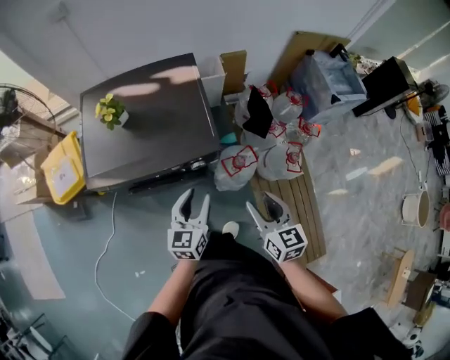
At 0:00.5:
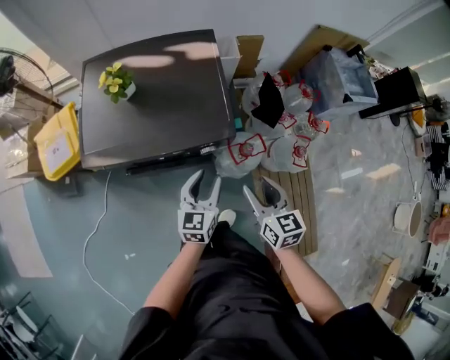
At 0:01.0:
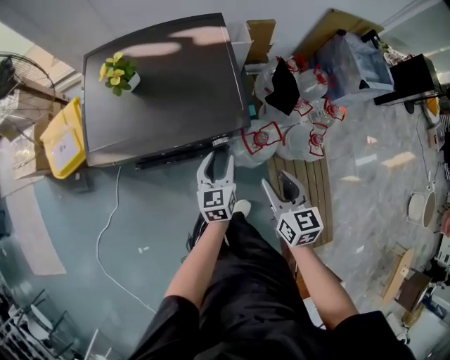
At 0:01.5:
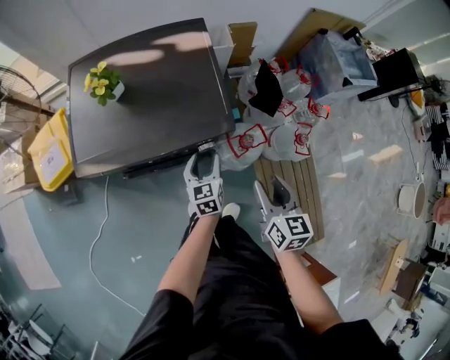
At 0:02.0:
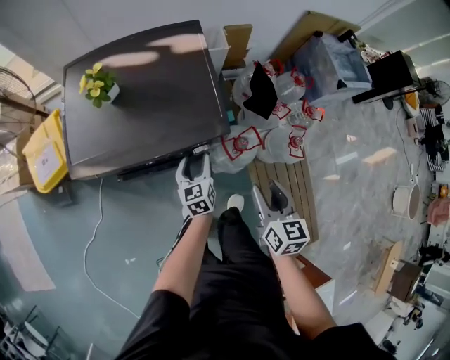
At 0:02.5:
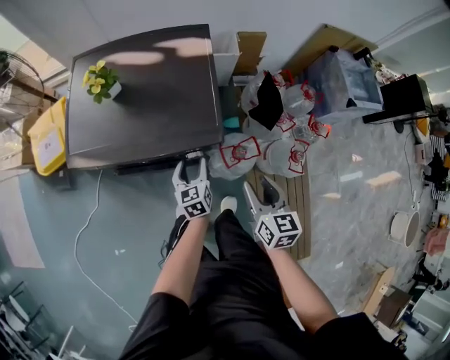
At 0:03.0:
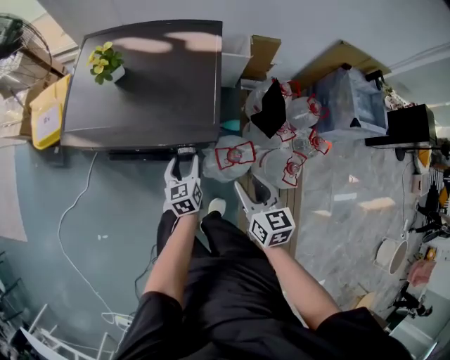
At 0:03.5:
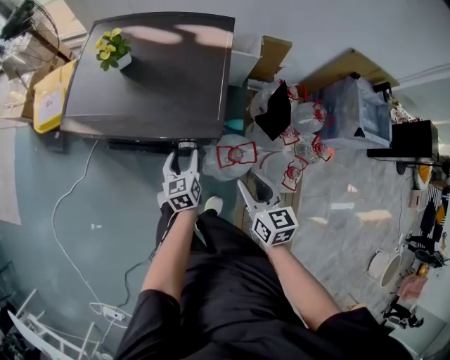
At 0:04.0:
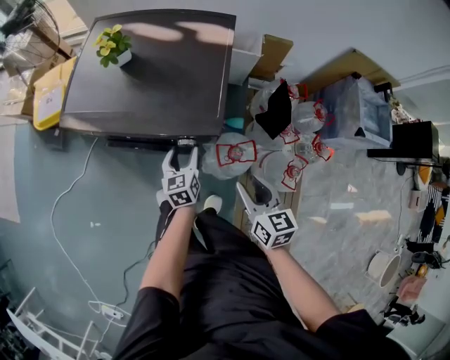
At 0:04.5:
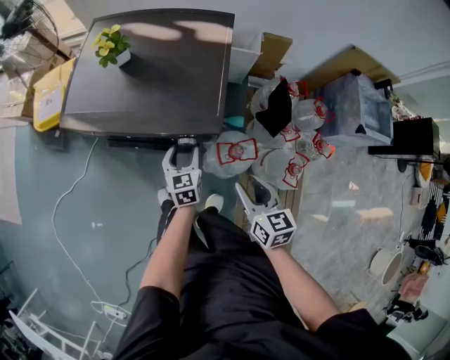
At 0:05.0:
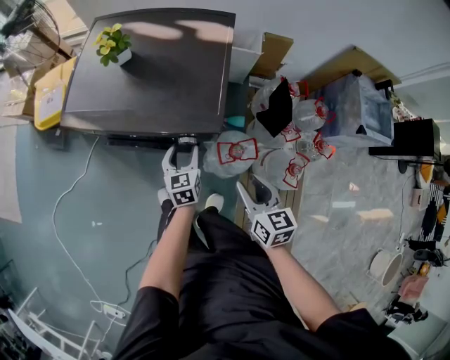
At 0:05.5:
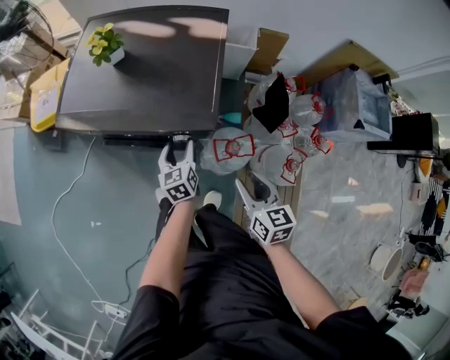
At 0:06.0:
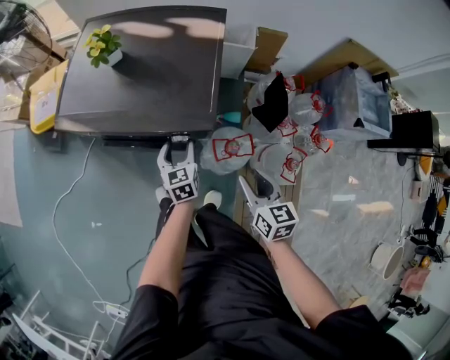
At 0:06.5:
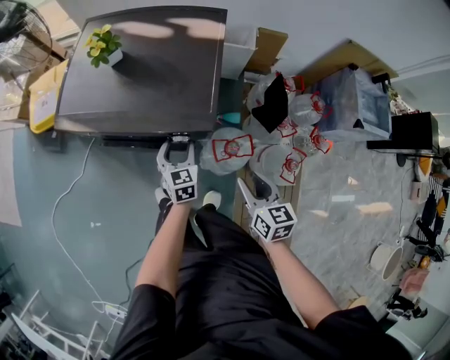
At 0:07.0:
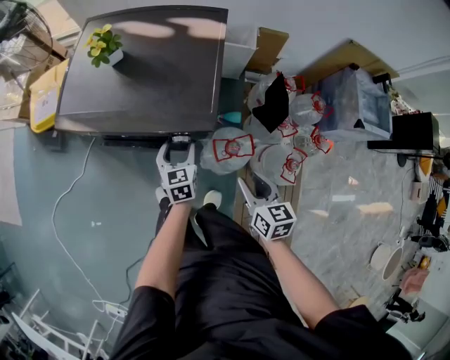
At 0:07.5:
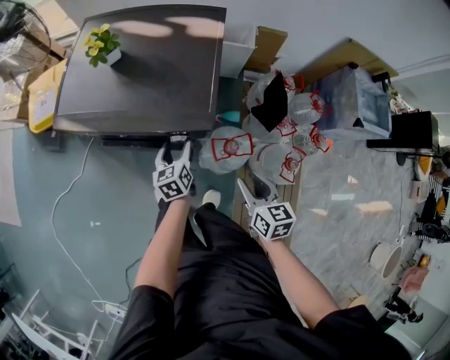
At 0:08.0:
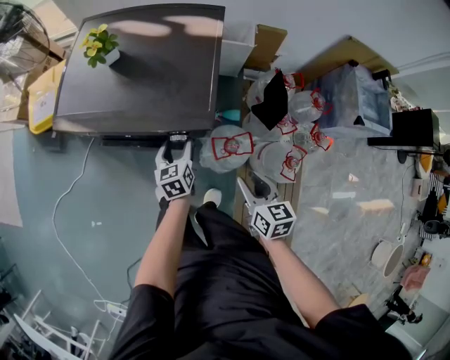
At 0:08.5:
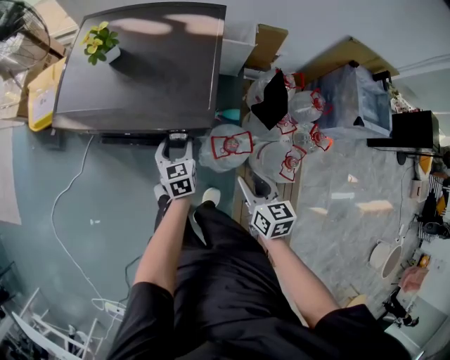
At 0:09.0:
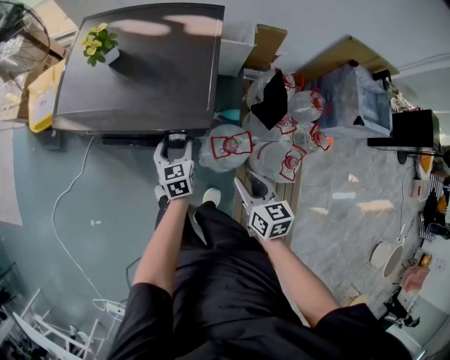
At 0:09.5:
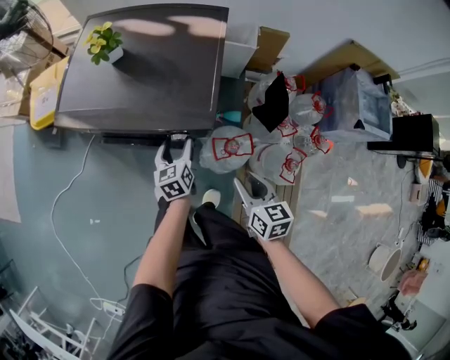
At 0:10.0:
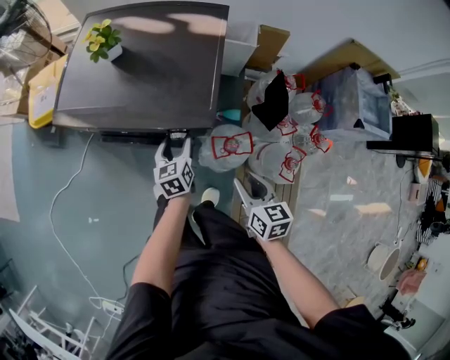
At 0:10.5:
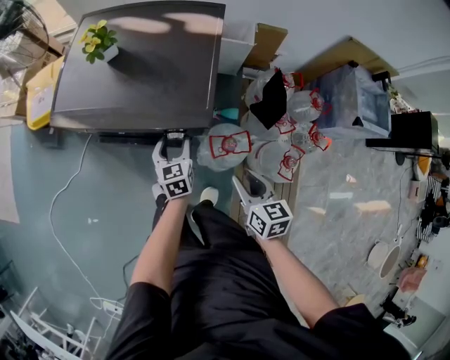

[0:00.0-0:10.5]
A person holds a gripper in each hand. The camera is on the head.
0:00.0 to 0:02.0: The right gripper moves downward, some 5 cm. The left gripper shifts approximately 20 cm downward and forward.
0:02.0 to 0:04.0: The right gripper travels downward by about 5 cm, and turns by some 30 degrees.
0:04.0 to 0:06.5: The left gripper rotates approximately 20 degrees.
0:08.5 to 0:10.5: There are only small adjustments of the grippers.

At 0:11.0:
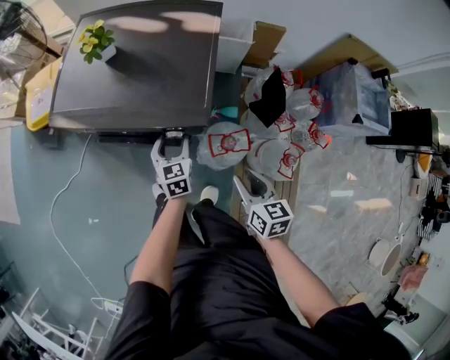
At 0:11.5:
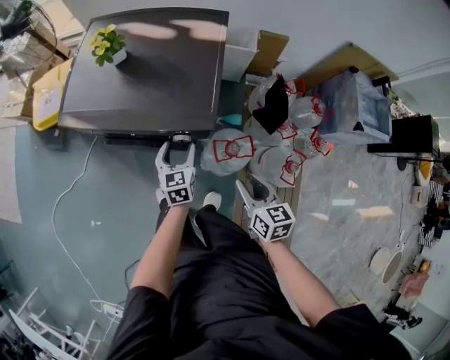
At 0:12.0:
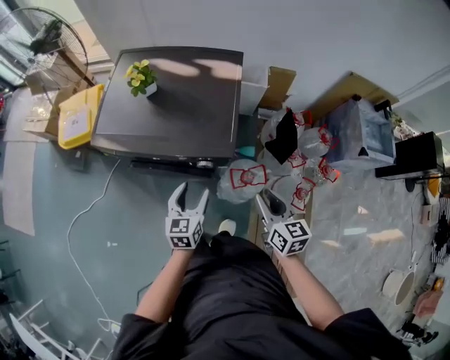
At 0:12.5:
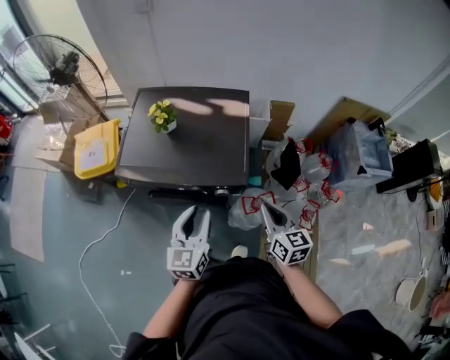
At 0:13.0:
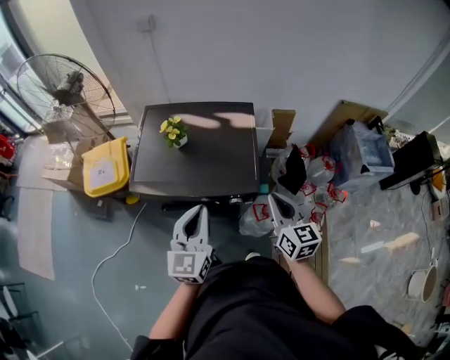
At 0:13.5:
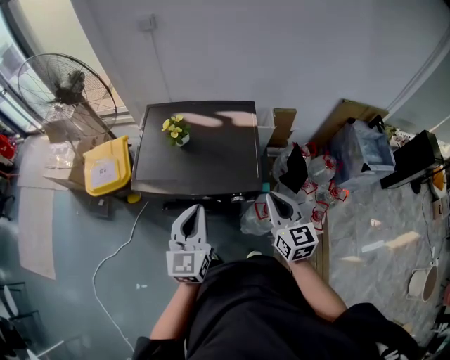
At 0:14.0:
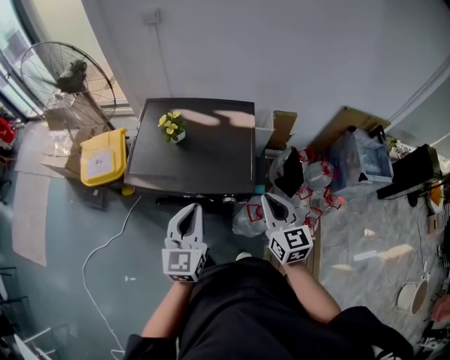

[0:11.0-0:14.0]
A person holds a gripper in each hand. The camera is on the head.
0:11.0 to 0:12.5: The left gripper moves upward, approximately 25 cm, turns by roughly 30 degrees, and closes its fingers, while the right gripper heads upward and to the left, covering approximately 20 cm, and closes its fingers.
0:12.5 to 0:14.0: The grippers both shift upward by about 10 cm. The left gripper closes.

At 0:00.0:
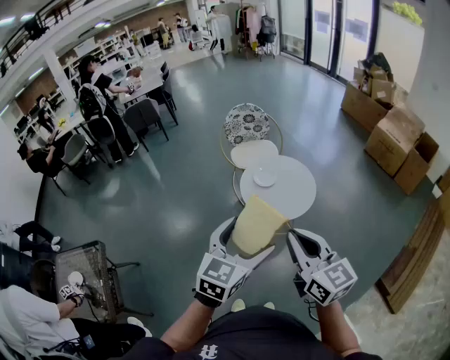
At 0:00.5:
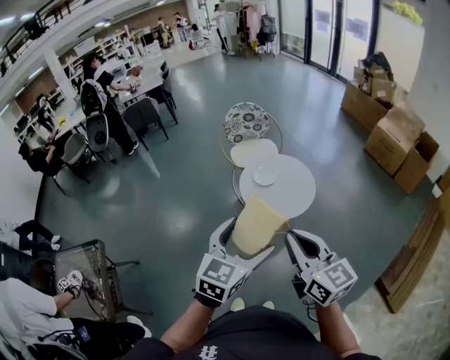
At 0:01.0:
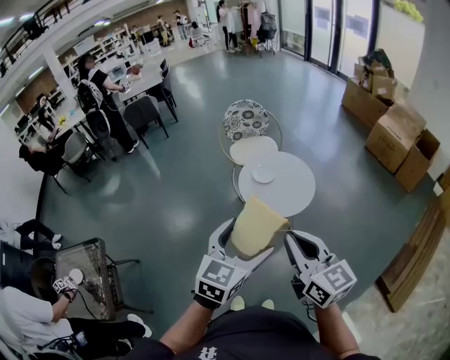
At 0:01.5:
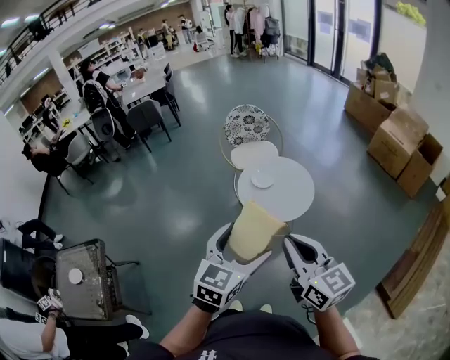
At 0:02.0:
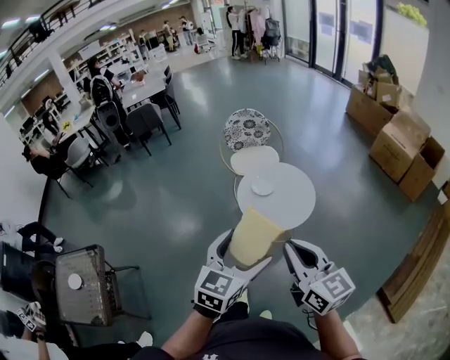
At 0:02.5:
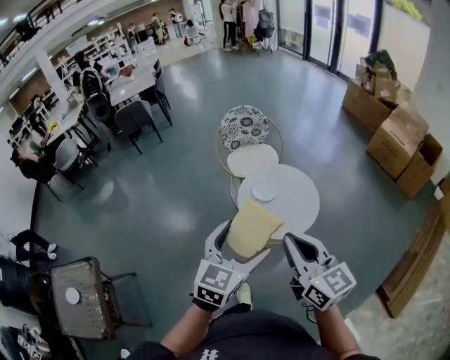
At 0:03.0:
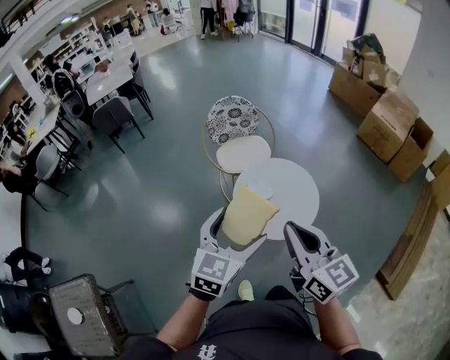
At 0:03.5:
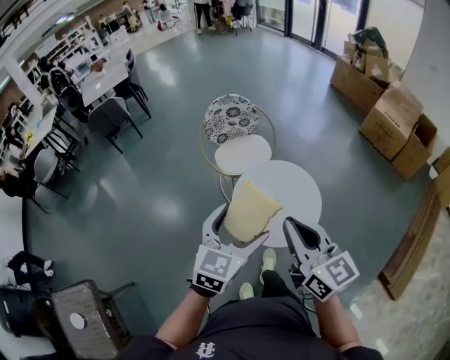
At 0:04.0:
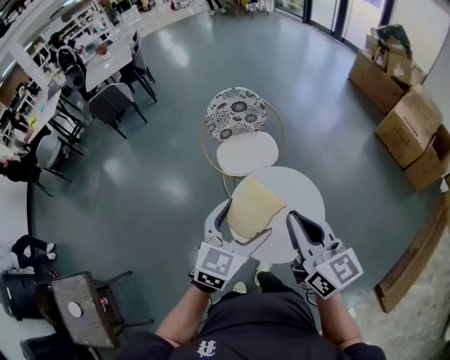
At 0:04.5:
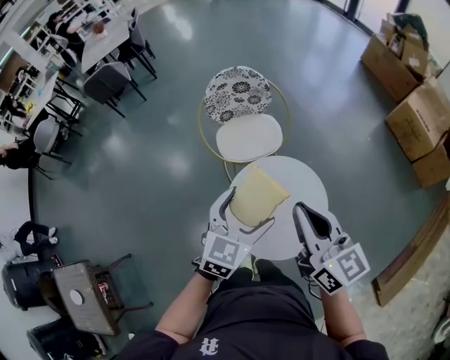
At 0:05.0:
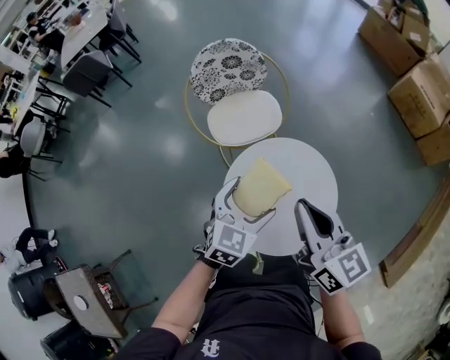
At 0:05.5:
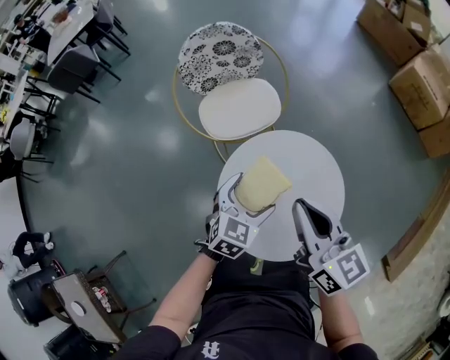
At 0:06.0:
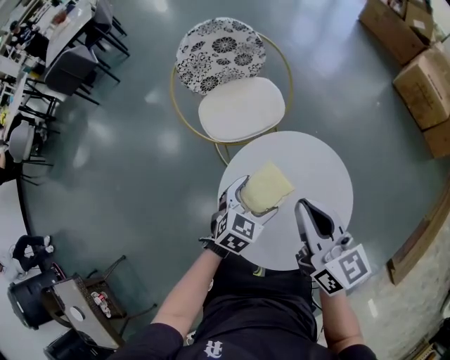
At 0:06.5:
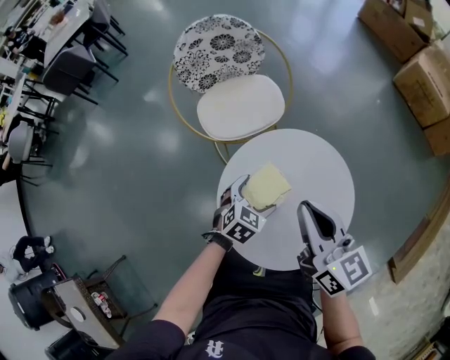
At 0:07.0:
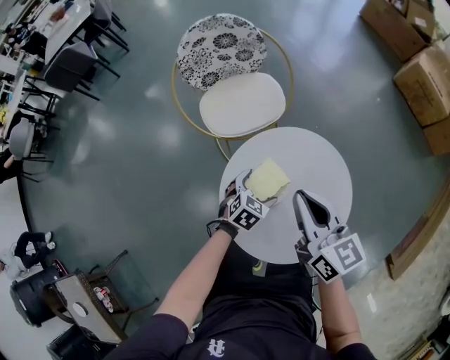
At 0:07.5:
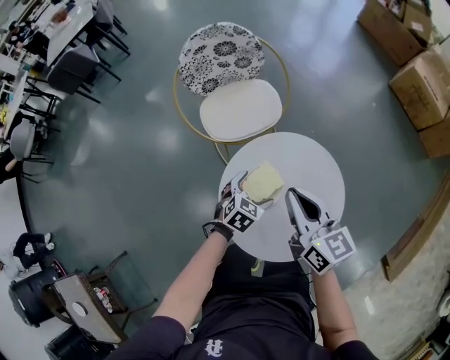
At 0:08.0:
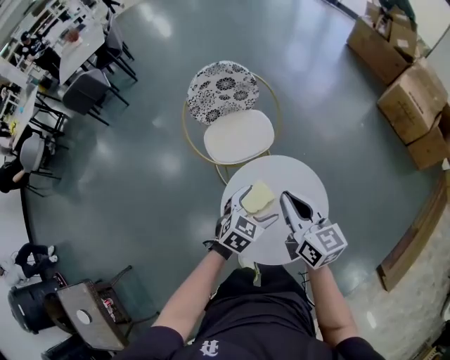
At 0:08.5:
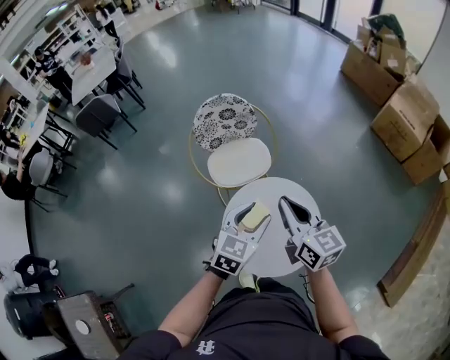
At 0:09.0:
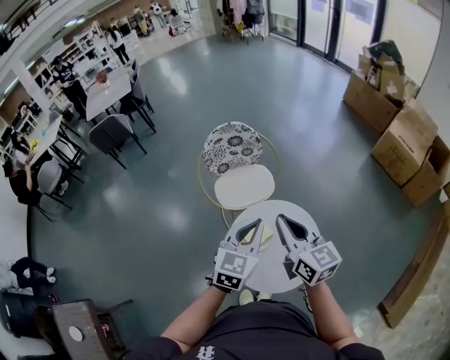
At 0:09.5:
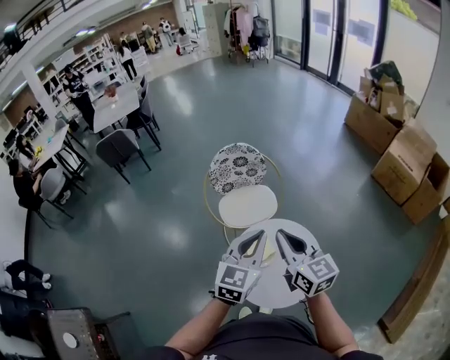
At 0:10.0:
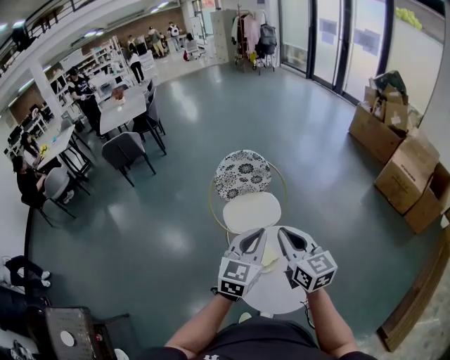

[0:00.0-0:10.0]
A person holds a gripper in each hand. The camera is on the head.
0:00.0 to 0:02.0: There are only small adjustments of the grippers.
0:02.0 to 0:04.0: Both grippers travel together forward, approximately 40 cm.
0:04.0 to 0:06.0: The right gripper goes roughly 30 cm downward and forward; the left gripper moves downward, roughly 35 cm, and swivels roughly 20 degrees.
0:06.0 to 0:08.0: The right gripper travels upward by roughly 10 cm; the left gripper shifts approximately 15 cm upward.
0:08.0 to 0:10.0: The right gripper shifts about 15 cm upward. The left gripper is displaced upward by about 25 cm, rotates roughly 40 degrees, and closes its fingers.

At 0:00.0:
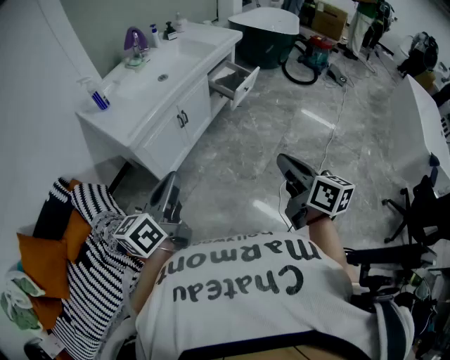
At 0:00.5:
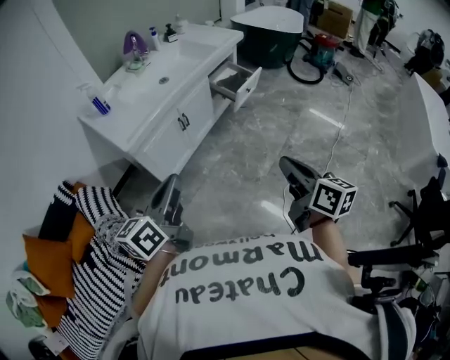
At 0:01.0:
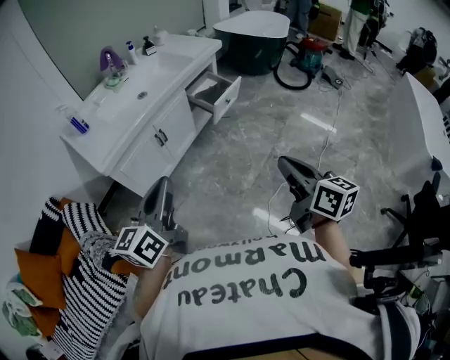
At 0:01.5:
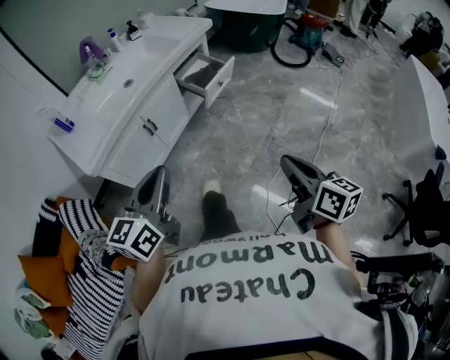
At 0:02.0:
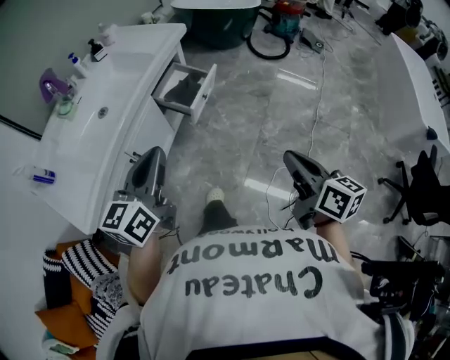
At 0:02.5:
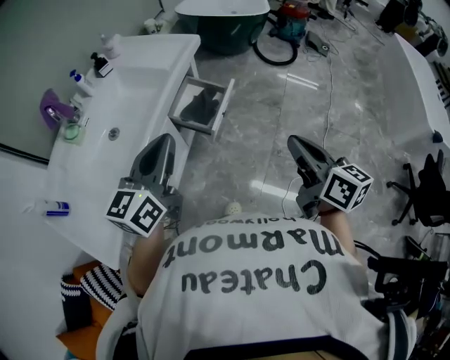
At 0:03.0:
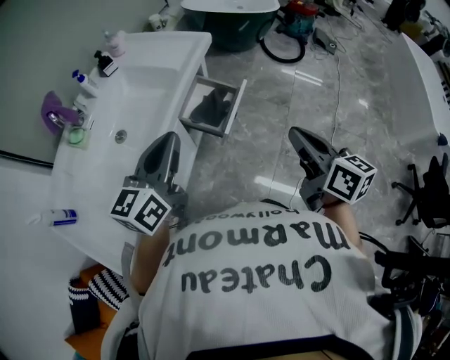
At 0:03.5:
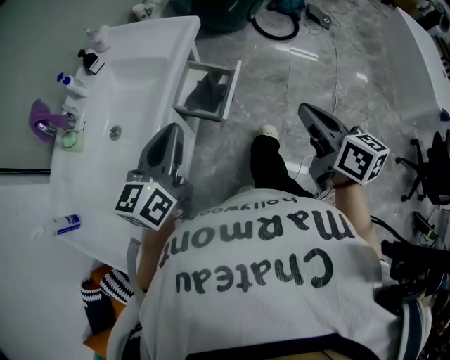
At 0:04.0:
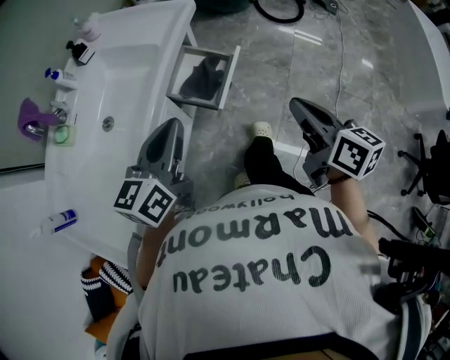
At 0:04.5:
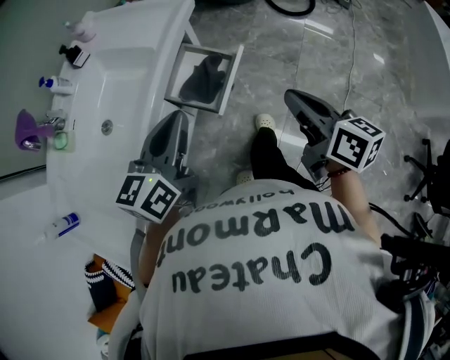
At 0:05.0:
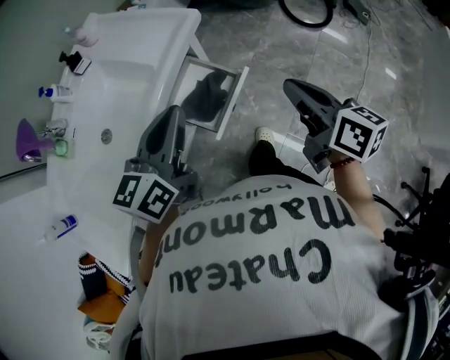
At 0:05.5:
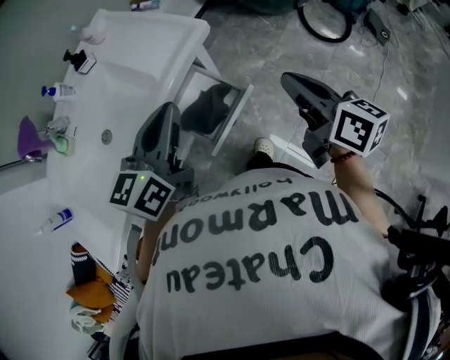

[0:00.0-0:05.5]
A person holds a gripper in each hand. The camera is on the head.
0:00.0 to 0:02.0: The grippers both shift forward and to the right by approximately 35 cm. The left gripper turns by about 20 degrees.
0:02.0 to 0:03.5: The left gripper shifts approximately 20 cm forward. The right gripper heads forward and to the left, covering approximately 25 cm.
0:03.5 to 0:05.5: The left gripper moves forward and to the right, some 25 cm. The right gripper travels forward by some 30 cm, and turns by about 30 degrees.
